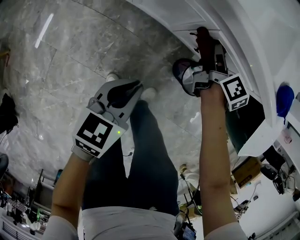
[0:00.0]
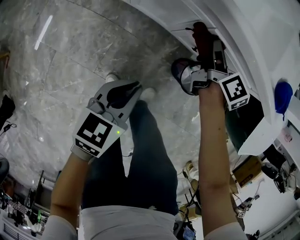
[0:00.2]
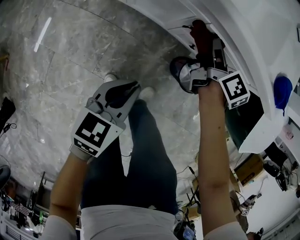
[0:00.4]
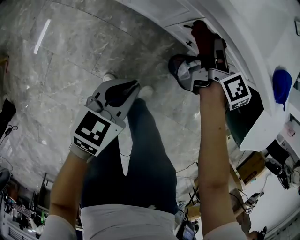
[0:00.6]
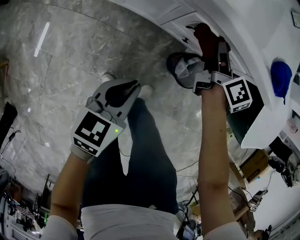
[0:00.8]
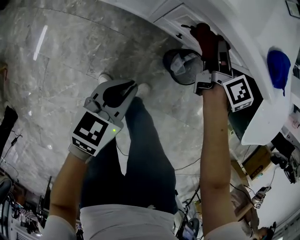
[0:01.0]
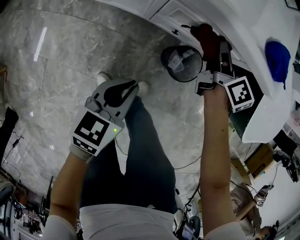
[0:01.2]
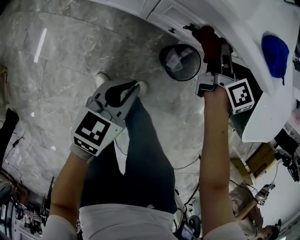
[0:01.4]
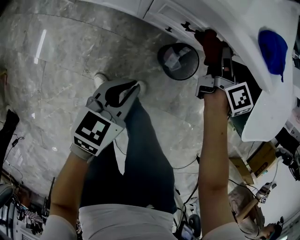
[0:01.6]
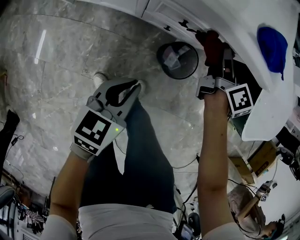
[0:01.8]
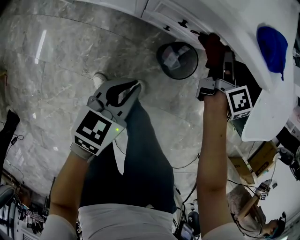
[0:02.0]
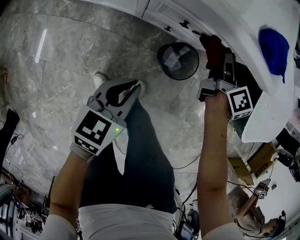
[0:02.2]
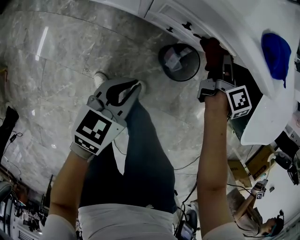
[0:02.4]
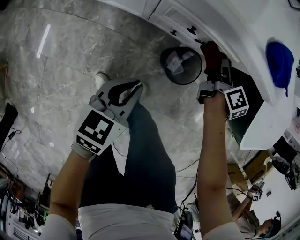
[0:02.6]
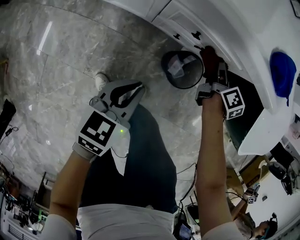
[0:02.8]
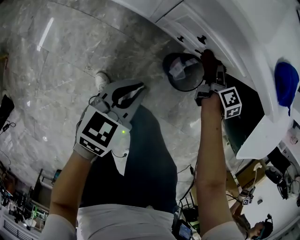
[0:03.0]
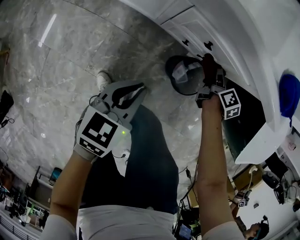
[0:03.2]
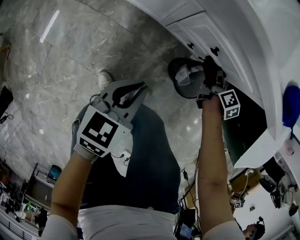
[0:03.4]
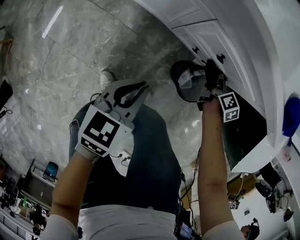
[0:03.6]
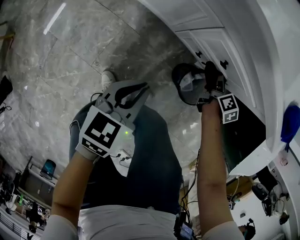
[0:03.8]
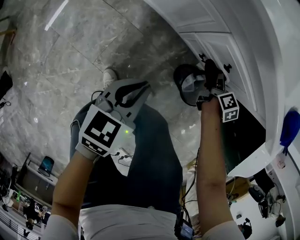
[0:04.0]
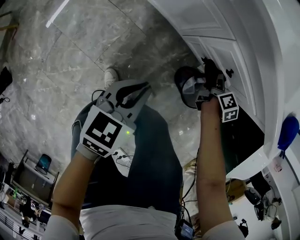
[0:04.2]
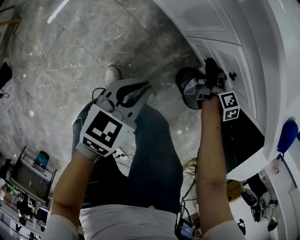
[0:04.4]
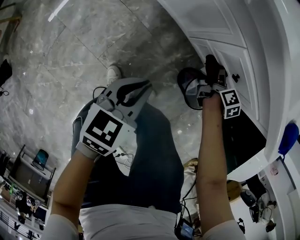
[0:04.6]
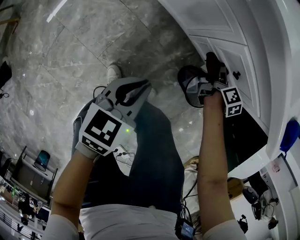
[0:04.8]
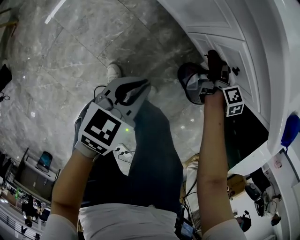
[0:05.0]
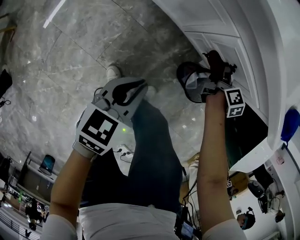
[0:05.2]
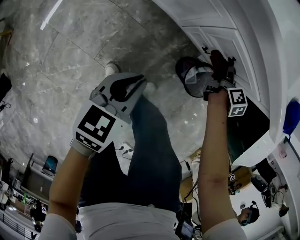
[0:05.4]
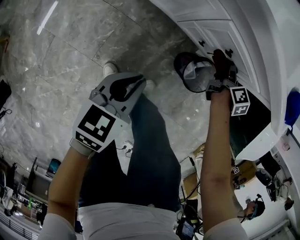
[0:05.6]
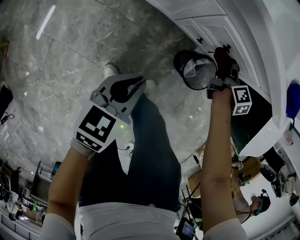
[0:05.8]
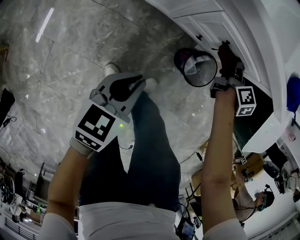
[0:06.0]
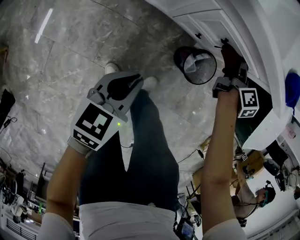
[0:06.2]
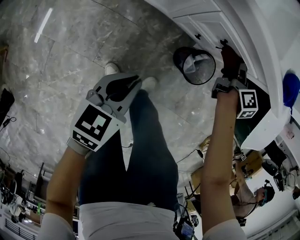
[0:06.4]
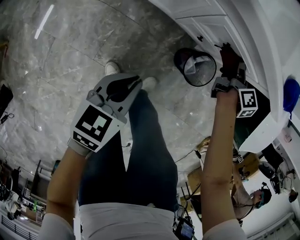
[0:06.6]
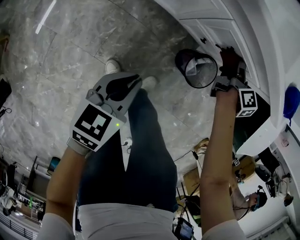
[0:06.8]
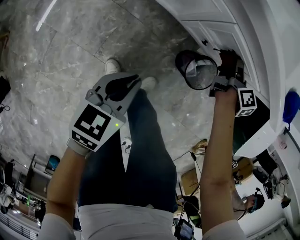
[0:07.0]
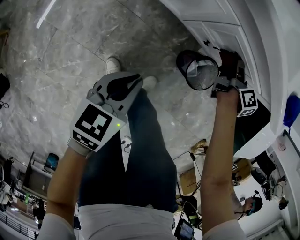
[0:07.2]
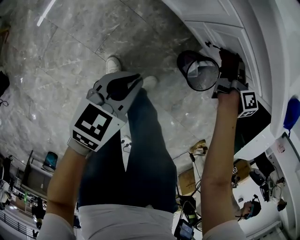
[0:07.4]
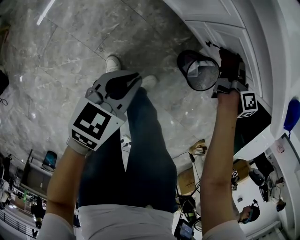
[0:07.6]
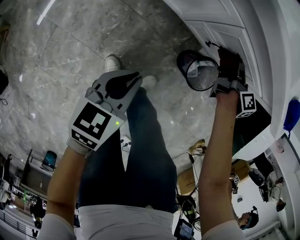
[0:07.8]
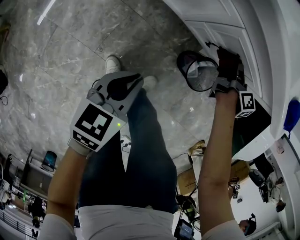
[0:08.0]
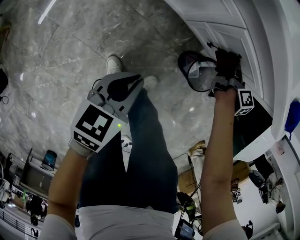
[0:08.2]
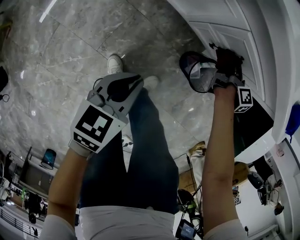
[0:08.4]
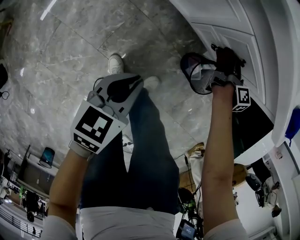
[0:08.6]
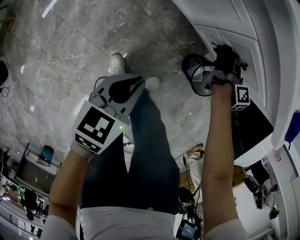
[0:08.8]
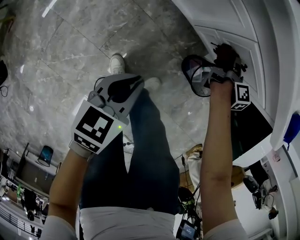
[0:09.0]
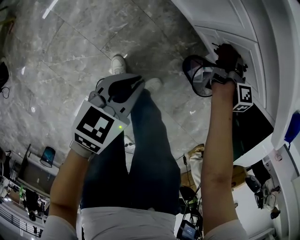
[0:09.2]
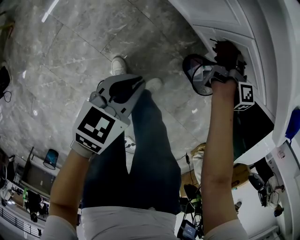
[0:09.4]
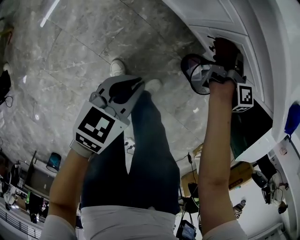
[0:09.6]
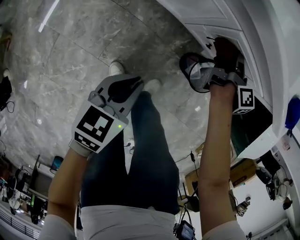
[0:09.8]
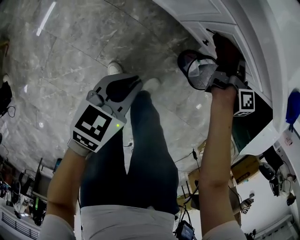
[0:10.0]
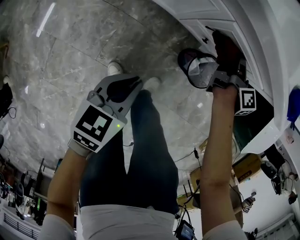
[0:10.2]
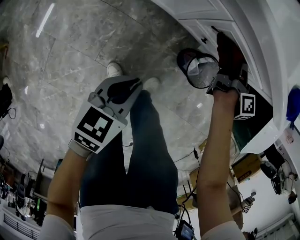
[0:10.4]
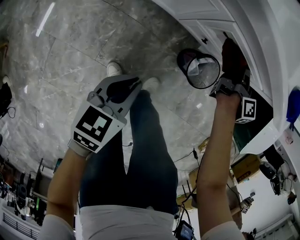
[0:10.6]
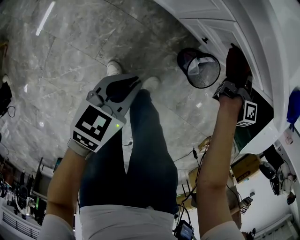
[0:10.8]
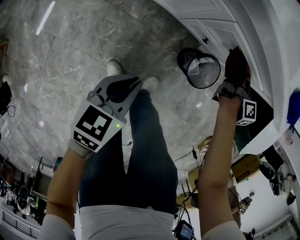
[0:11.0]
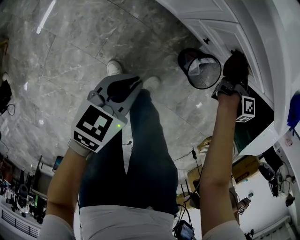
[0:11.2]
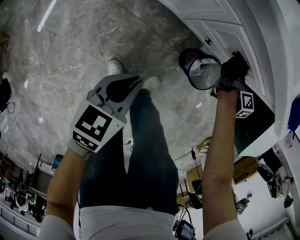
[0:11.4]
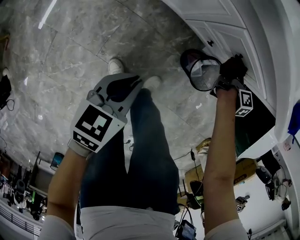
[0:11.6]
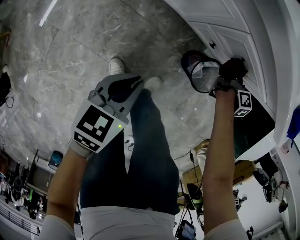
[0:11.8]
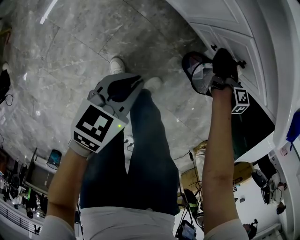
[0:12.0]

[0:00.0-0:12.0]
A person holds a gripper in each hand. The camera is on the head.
0:00.0 to 0:01.6: Both grippers move to the right, about 15 cm.
0:01.6 to 0:03.0: The right gripper goes approximately 15 cm downward.
0:03.0 to 0:04.4: The left gripper shifts roughly 10 cm to the left. Meanwhile the right gripper goes about 15 cm to the left and downward.
0:04.4 to 0:06.0: The right gripper goes roughly 15 cm upward and to the right.
0:06.0 to 0:07.6: The right gripper heads to the left, covering some 5 cm.
0:07.6 to 0:09.0: The right gripper moves roughly 5 cm.
0:09.0 to 0:10.4: The right gripper goes approximately 10 cm upward and to the right.
0:10.4 to 0:12.0: The right gripper moves downward, some 10 cm.

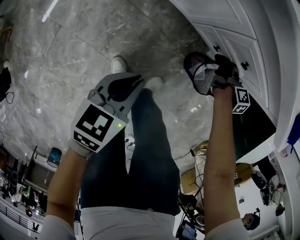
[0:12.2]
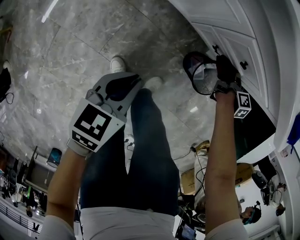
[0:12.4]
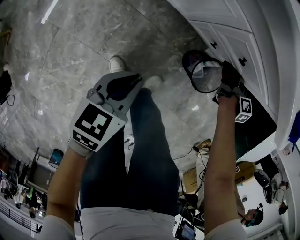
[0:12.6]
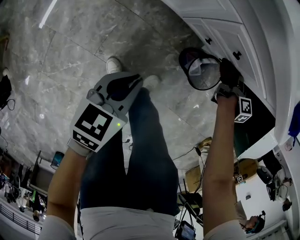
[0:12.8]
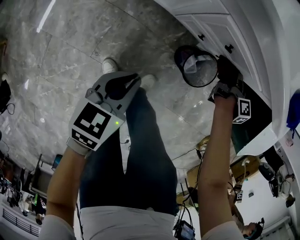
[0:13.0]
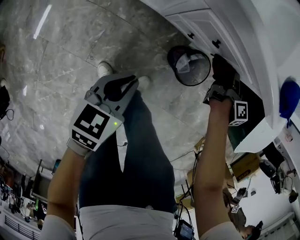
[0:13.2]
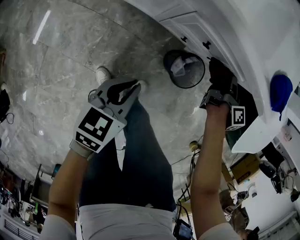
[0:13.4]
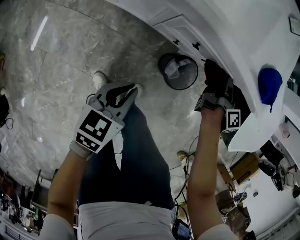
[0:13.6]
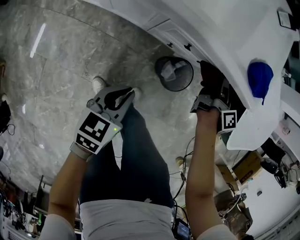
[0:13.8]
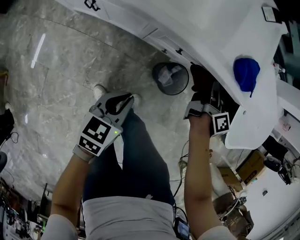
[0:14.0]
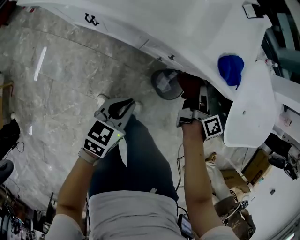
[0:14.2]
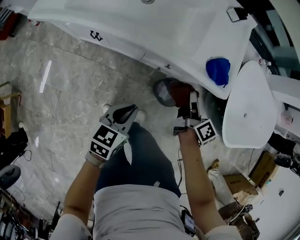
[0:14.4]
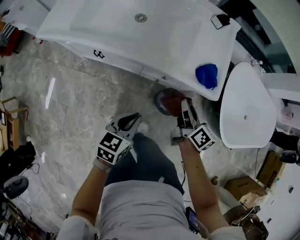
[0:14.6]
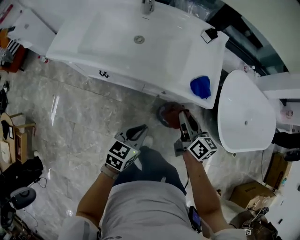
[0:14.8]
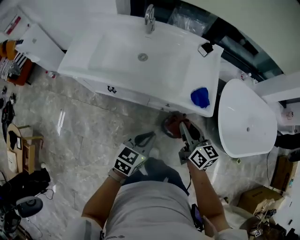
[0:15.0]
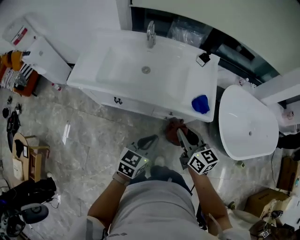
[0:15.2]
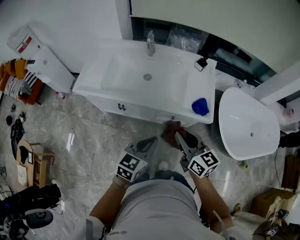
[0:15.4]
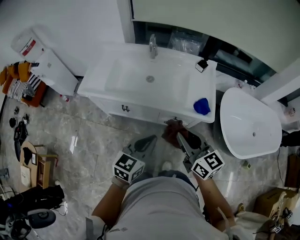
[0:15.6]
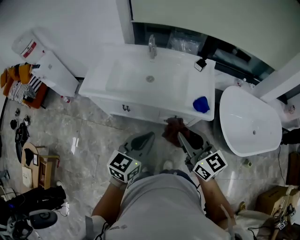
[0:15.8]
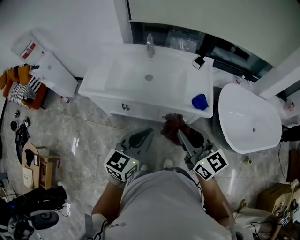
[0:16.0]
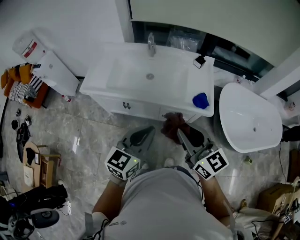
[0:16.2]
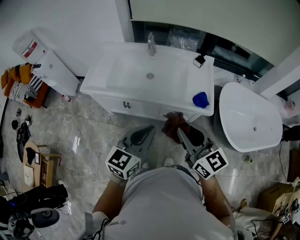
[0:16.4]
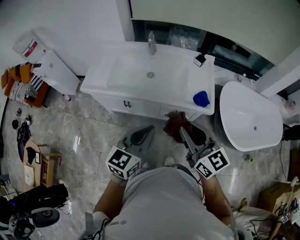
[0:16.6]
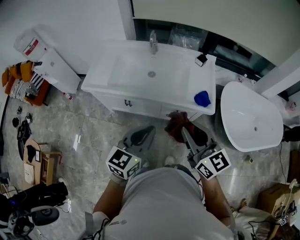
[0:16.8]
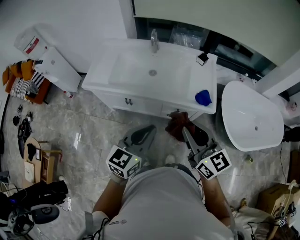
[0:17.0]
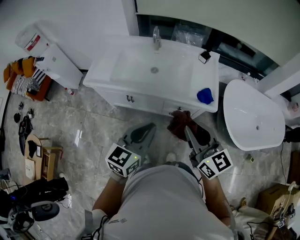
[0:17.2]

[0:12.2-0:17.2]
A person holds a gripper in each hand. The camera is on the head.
0:12.2 to 0:13.8: The right gripper moves upward, roughly 20 cm, and turns by roughly 20 degrees; the left gripper heads to the right, forward and upward, covering roughly 15 cm.
0:13.8 to 0:15.6: The right gripper shifts some 50 cm upward, to the left and backward, and rotates roughly 70 degrees. Meanwhile the left gripper goes approximately 40 cm upward, and changes its angle by some 30 degrees.
0:15.6 to 0:17.2: The two grippers go approximately 5 cm upward.

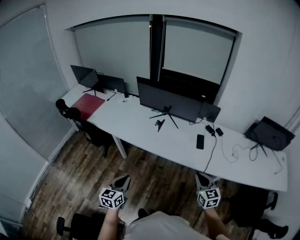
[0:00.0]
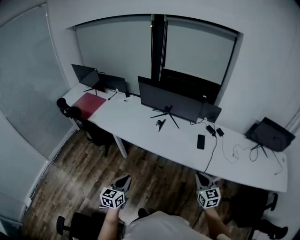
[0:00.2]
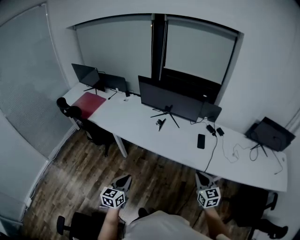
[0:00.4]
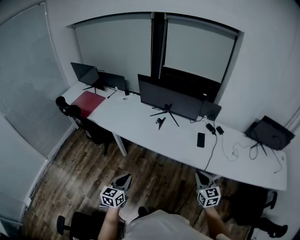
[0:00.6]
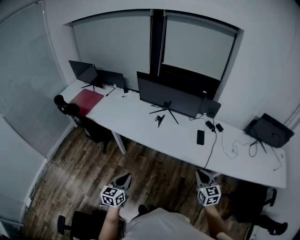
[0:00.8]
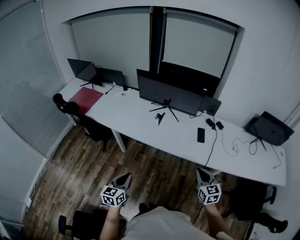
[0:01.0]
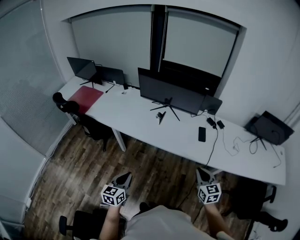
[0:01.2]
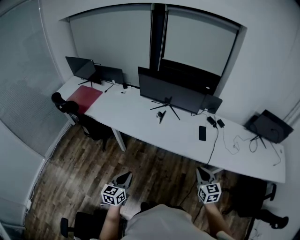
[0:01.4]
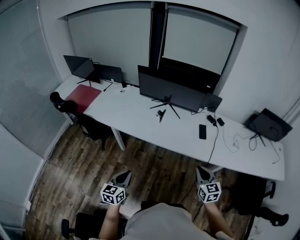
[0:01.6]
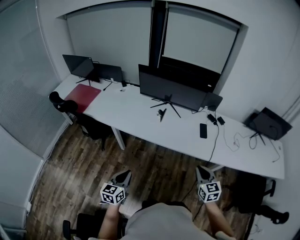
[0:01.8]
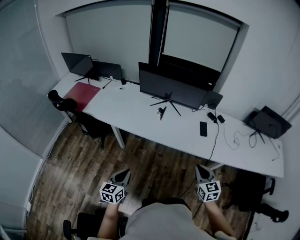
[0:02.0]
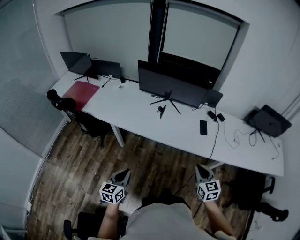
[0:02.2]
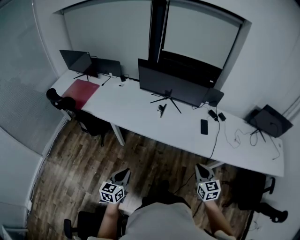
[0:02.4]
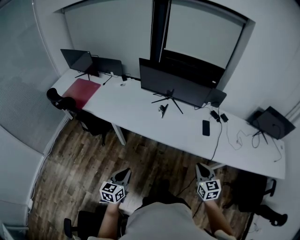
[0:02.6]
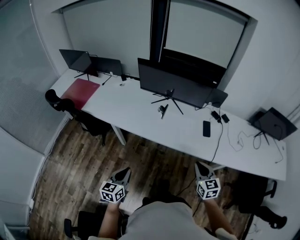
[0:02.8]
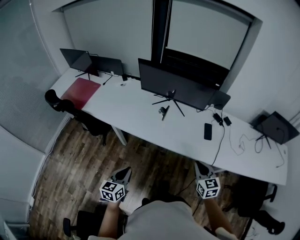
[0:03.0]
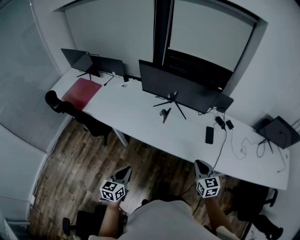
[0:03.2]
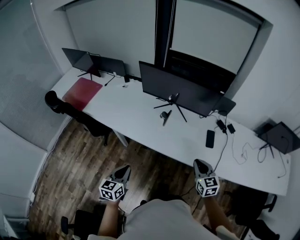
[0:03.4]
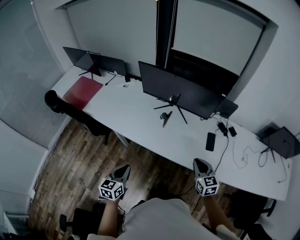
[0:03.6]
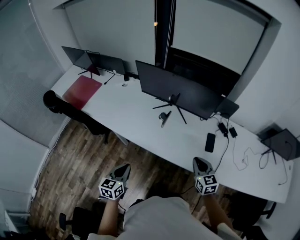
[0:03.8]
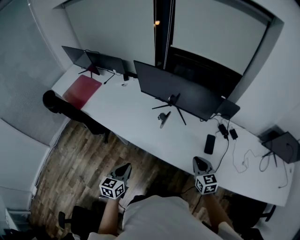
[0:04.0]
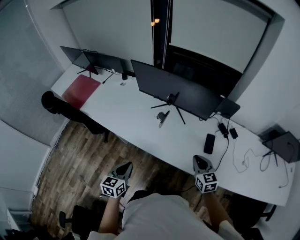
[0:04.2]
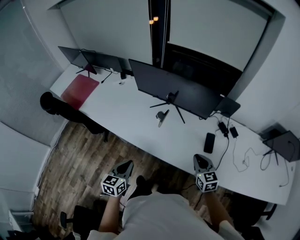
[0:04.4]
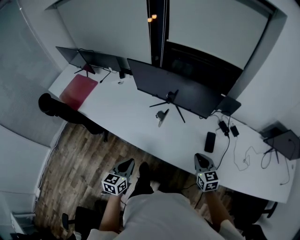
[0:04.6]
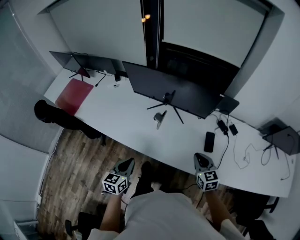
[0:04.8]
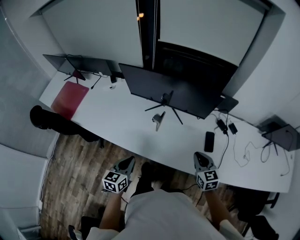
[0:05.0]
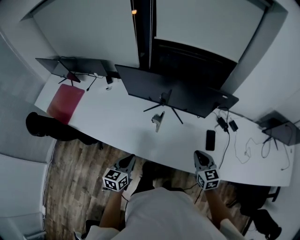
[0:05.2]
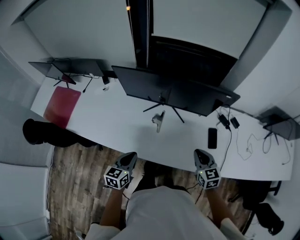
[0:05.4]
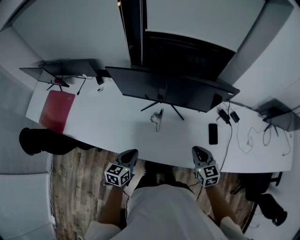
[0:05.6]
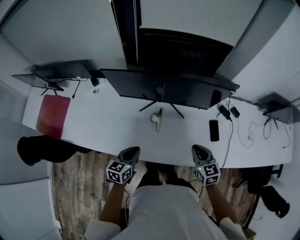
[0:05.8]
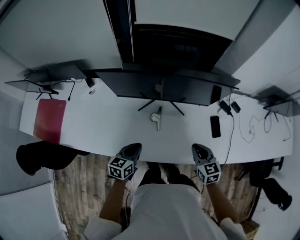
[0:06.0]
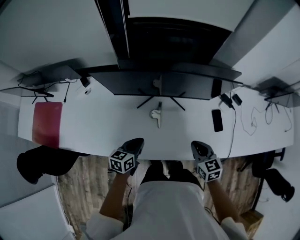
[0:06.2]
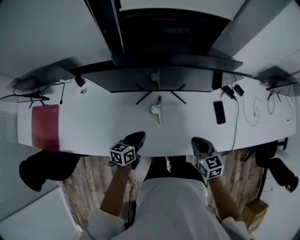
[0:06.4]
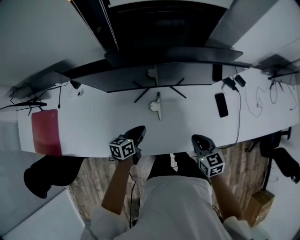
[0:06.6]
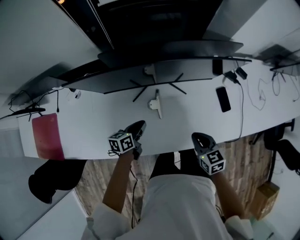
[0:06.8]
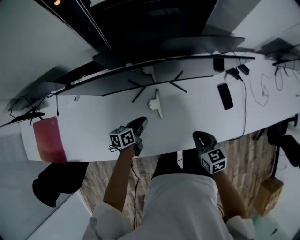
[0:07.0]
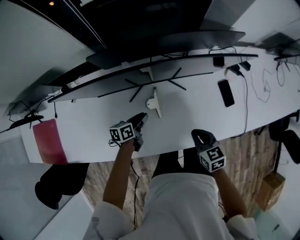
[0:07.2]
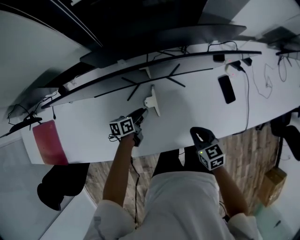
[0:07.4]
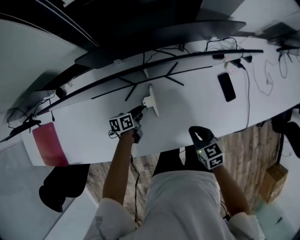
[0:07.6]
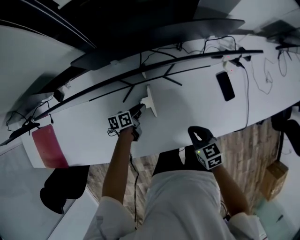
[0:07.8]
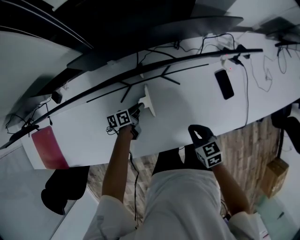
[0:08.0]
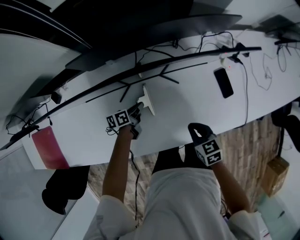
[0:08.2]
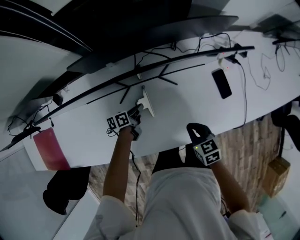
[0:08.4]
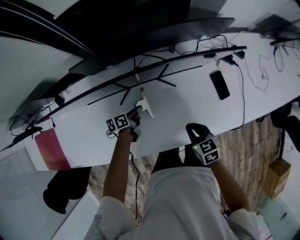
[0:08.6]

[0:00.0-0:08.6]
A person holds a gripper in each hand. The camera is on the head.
0:00.0 to 0:01.4: The left gripper changes place by about 5 cm.
0:01.4 to 0:02.8: The grippers both shift forward by about 5 cm.
0:02.8 to 0:04.4: The left gripper goes roughly 20 cm forward and to the right. Meanwhile the right gripper is displaced forward by some 20 cm.
0:04.4 to 0:05.8: The left gripper is displaced forward by some 20 cm, and rotates roughly 20 degrees. The right gripper travels forward and to the left by roughly 15 cm.
0:05.8 to 0:07.2: The left gripper is displaced downward and forward by about 25 cm, and rotates approximately 30 degrees; the right gripper moves downward, some 10 cm, and rotates approximately 20 degrees.
0:07.2 to 0:08.6: The left gripper is displaced downward by approximately 5 cm.
